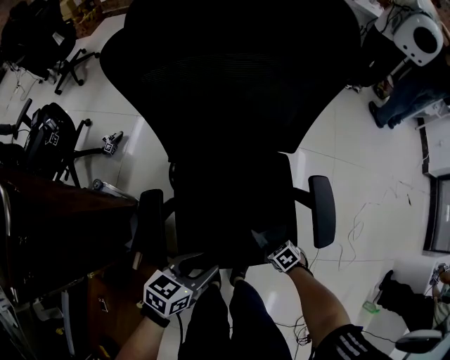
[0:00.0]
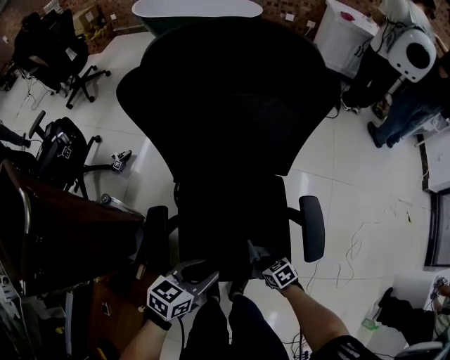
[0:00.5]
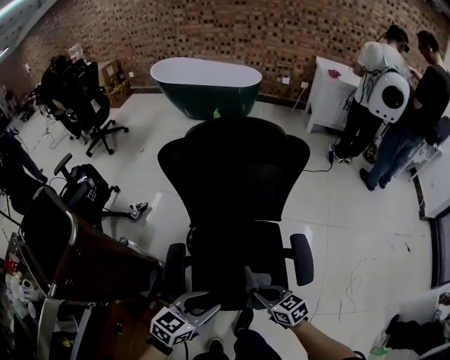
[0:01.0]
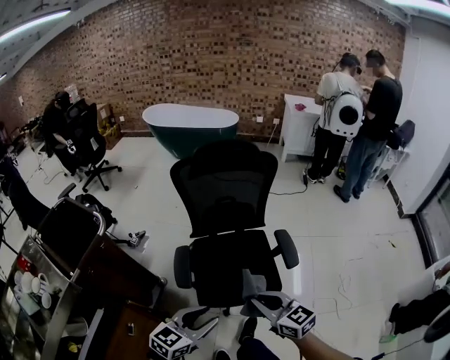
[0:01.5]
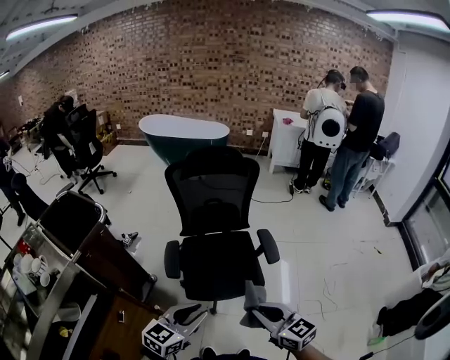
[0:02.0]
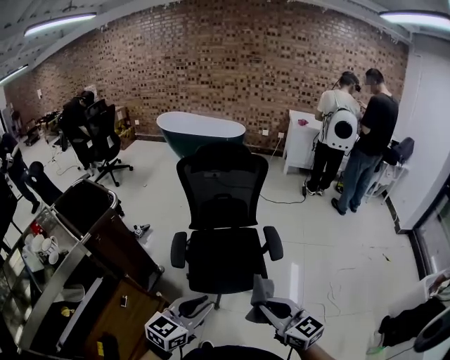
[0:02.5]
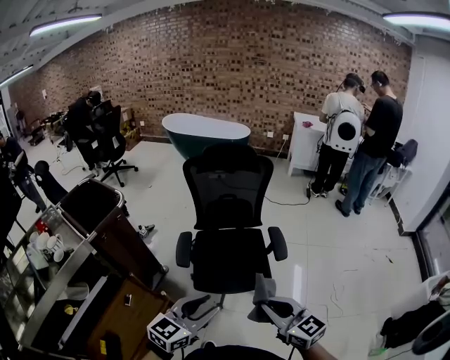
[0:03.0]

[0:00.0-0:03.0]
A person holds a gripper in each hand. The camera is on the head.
0:00.0 to 0:01.5: The left gripper heads upward, covering about 25 cm, and swivels approximately 30 degrees. The right gripper moves upward, about 50 cm, and angles its fingers upward, by roughly 60 degrees.
0:01.5 to 0:03.0: Both grippers travel together backward, upward and to the right, some 20 cm.

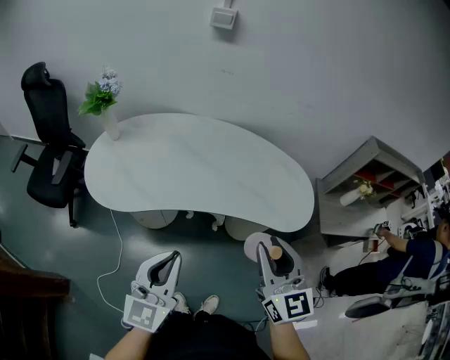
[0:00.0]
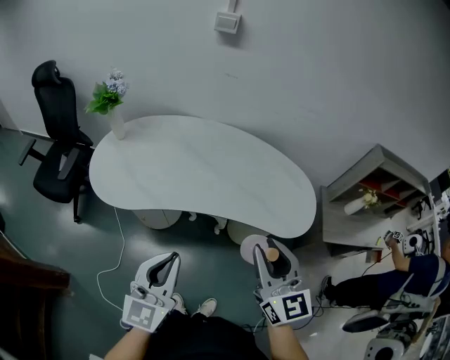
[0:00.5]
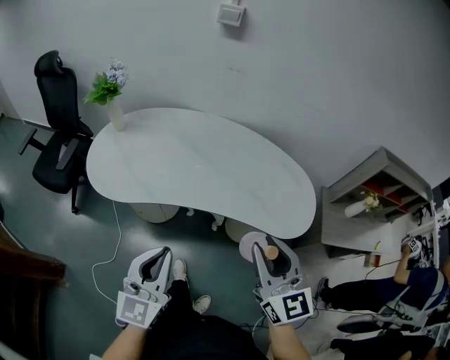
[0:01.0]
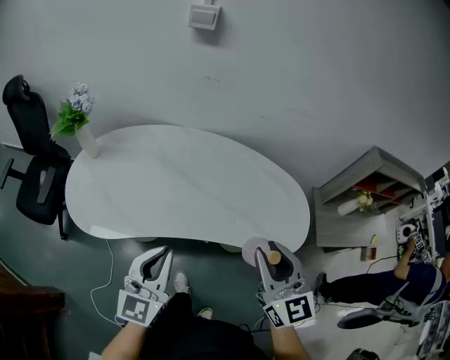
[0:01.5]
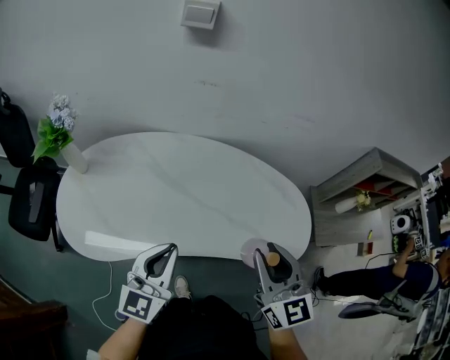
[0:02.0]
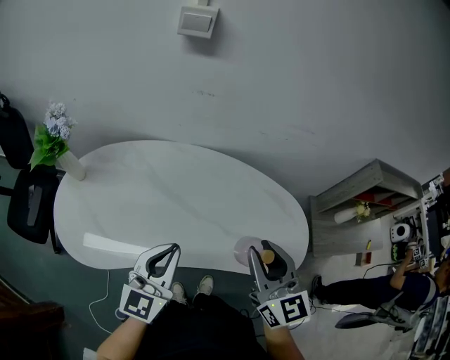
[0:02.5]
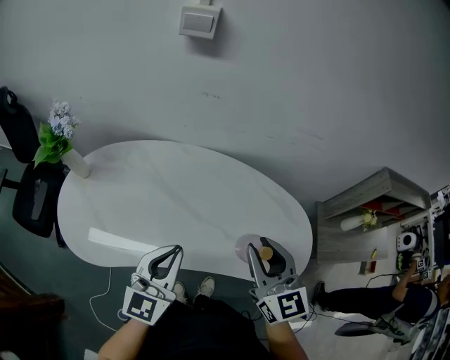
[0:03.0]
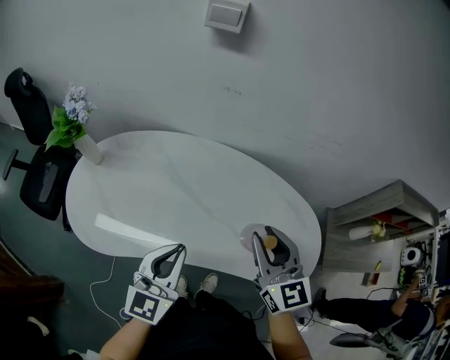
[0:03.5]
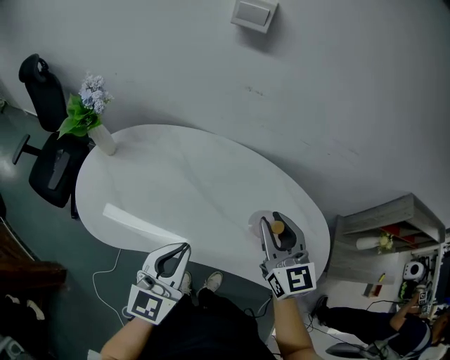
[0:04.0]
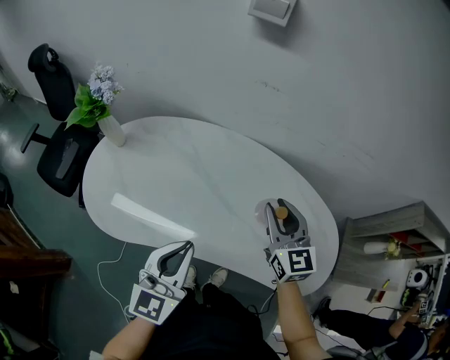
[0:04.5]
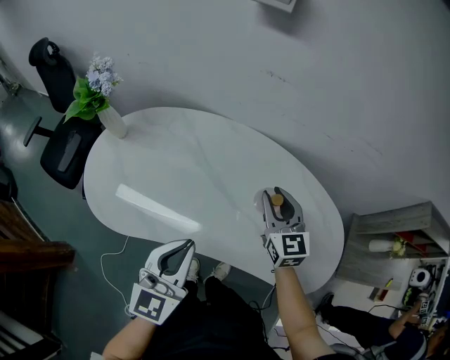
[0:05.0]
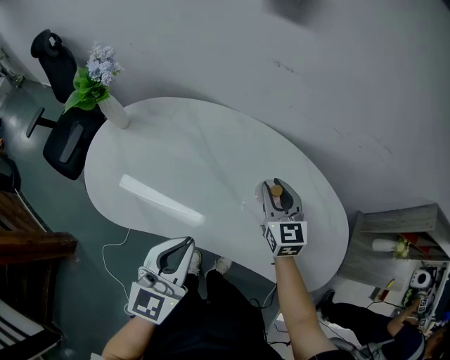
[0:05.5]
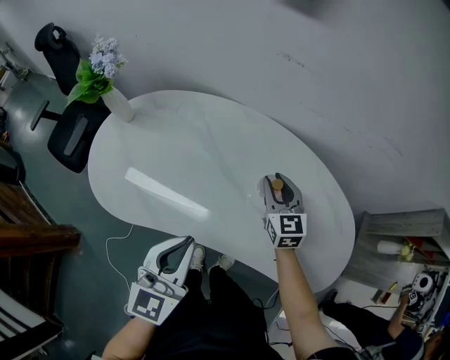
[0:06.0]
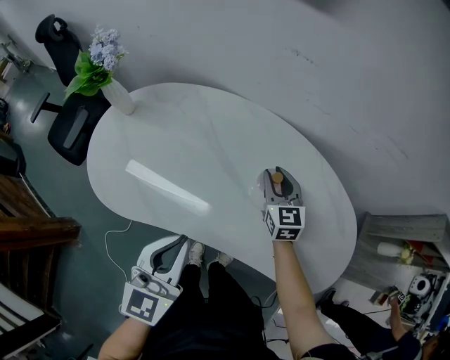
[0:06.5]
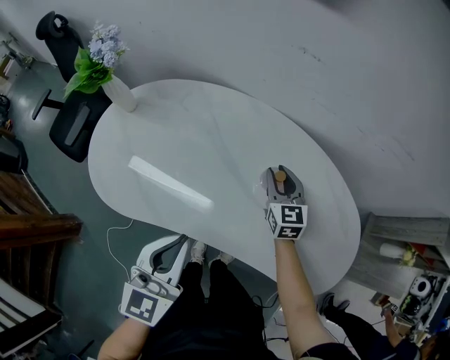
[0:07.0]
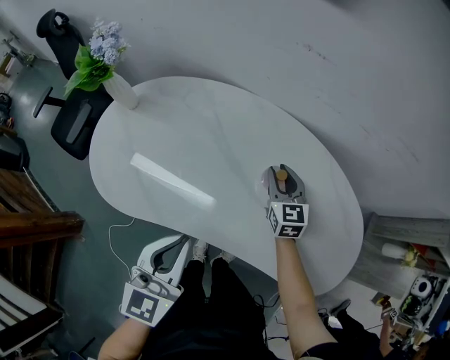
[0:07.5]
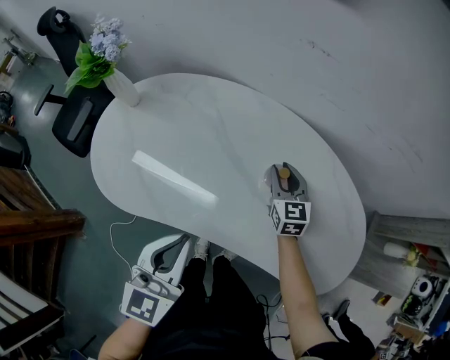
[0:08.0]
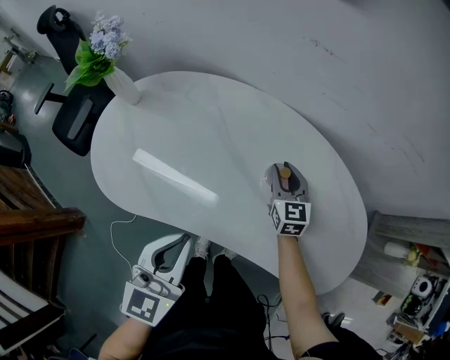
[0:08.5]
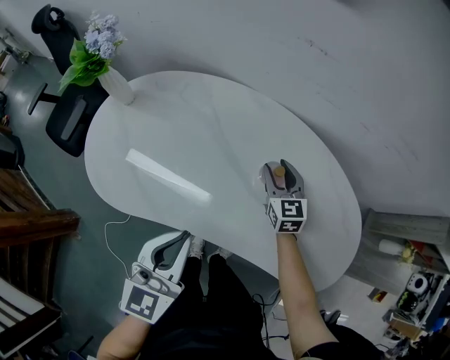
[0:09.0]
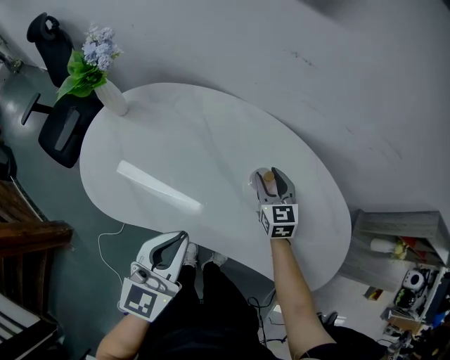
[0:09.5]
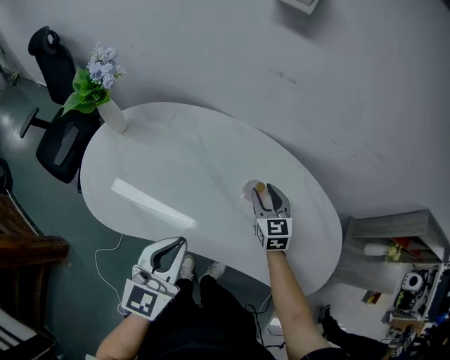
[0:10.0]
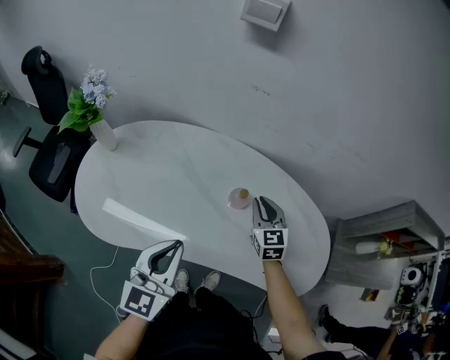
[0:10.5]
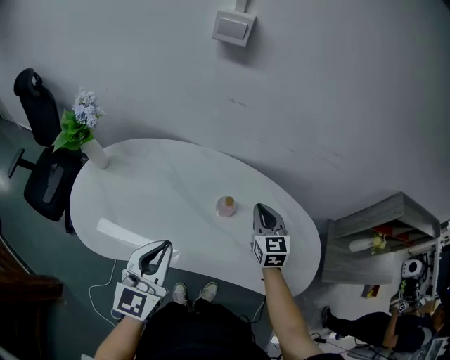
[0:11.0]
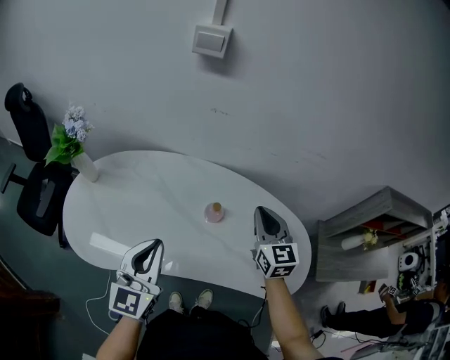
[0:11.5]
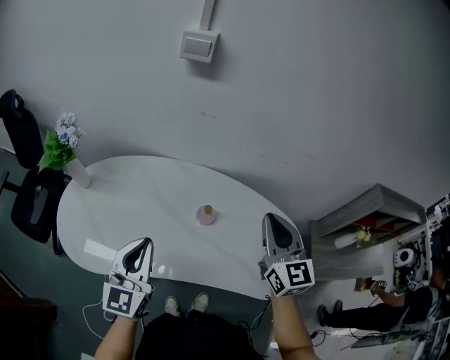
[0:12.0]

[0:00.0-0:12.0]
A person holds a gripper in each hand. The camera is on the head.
0:00.0 to 0:02.0: The two grippers go approximately 20 cm forward.
0:02.0 to 0:04.0: The right gripper is displaced forward by about 15 cm.
0:04.0 to 0:06.0: The right gripper moves downward and forward, roughly 20 cm.
0:06.0 to 0:08.0: The right gripper goes roughly 5 cm downward.
0:08.0 to 0:10.0: The grippers stay close to where they were, moving slightly.
0:10.0 to 0:12.0: The right gripper is displaced upward, to the right and backward by about 30 cm, swivels some 30 degrees, and closes, while the left gripper travels upward by some 5 cm.

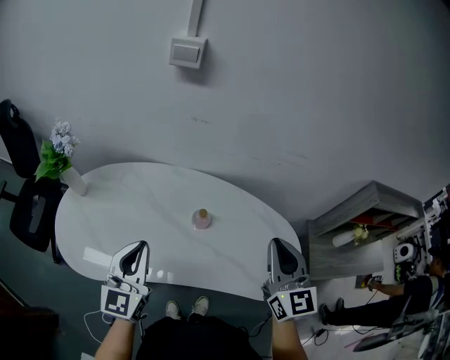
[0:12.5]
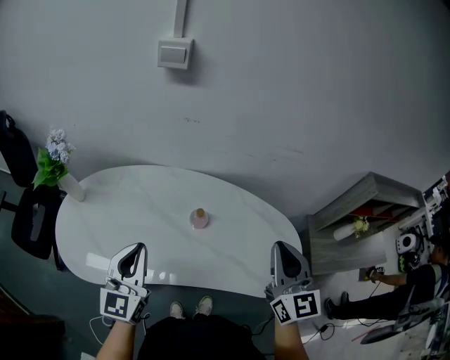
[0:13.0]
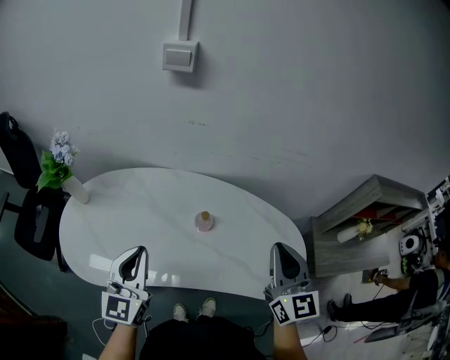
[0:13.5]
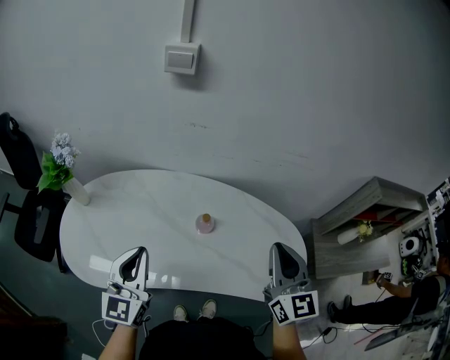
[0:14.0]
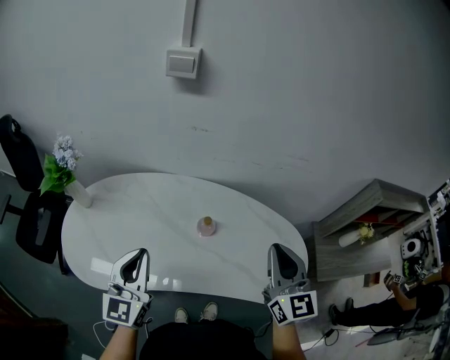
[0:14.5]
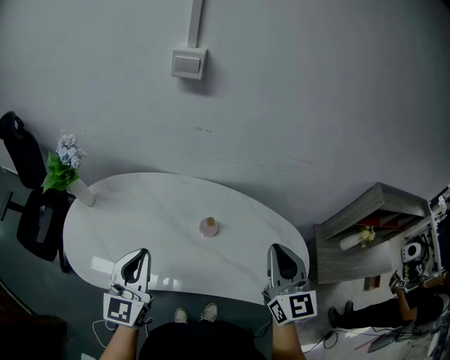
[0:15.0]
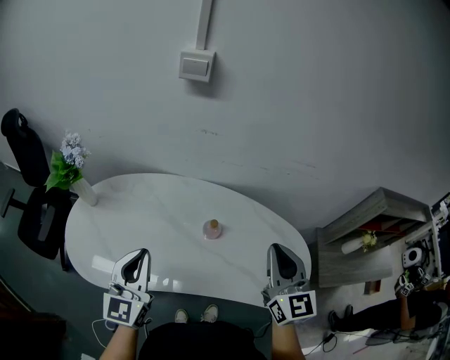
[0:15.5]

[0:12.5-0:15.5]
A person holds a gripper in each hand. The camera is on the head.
0:12.5 to 0:15.5: The grippers stay close to where they were, moving slightly.

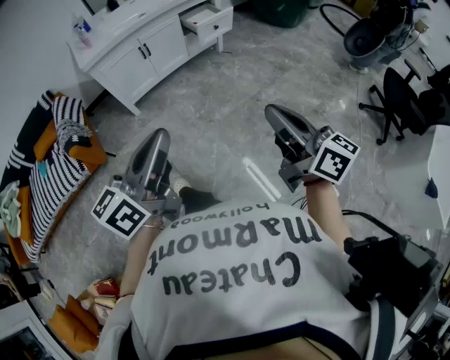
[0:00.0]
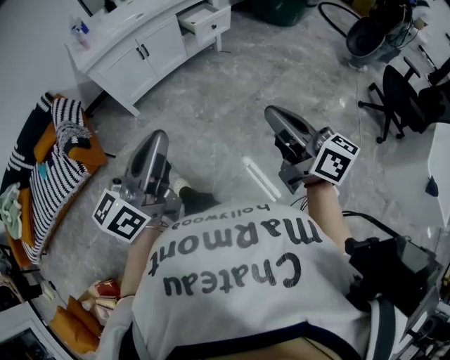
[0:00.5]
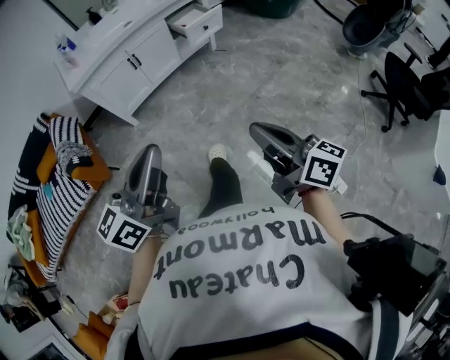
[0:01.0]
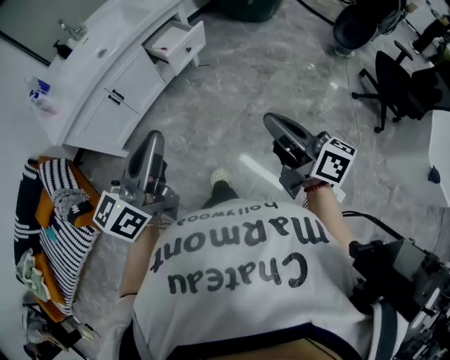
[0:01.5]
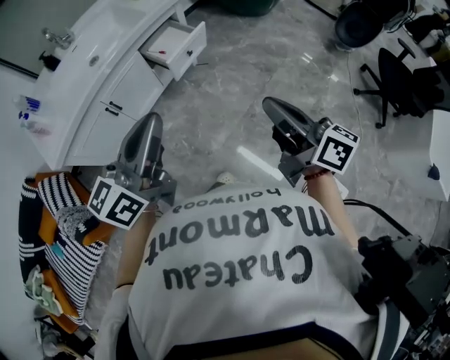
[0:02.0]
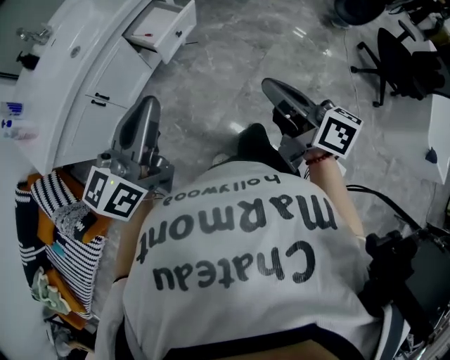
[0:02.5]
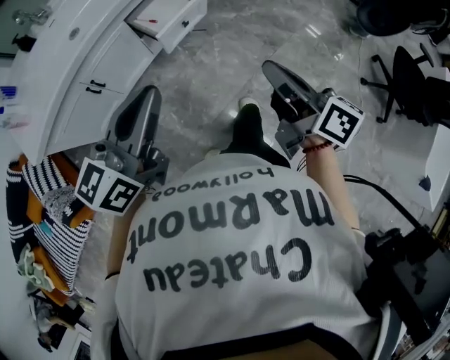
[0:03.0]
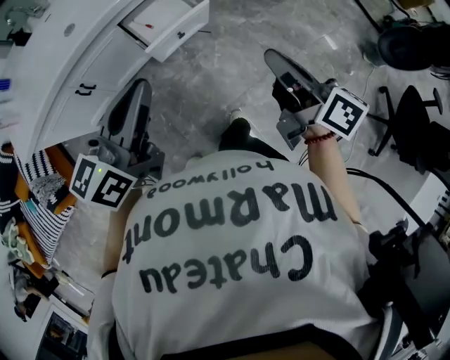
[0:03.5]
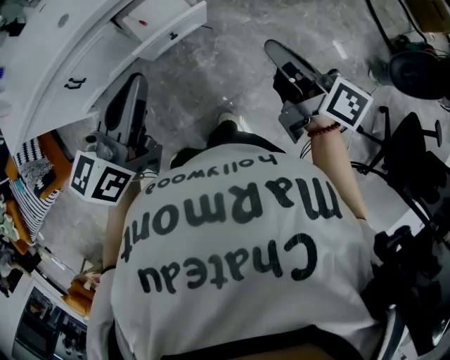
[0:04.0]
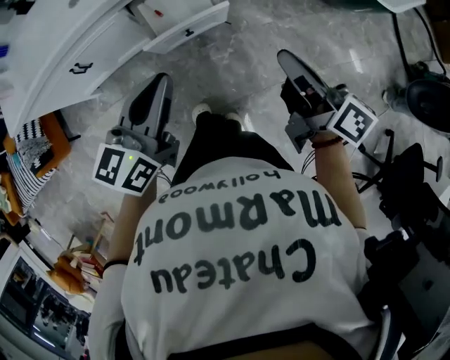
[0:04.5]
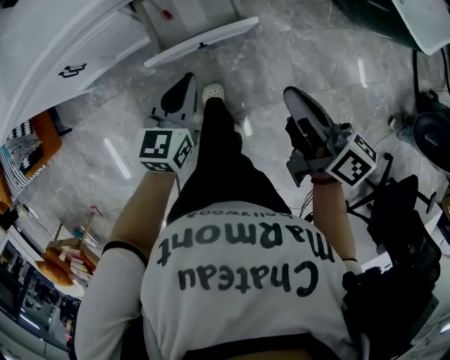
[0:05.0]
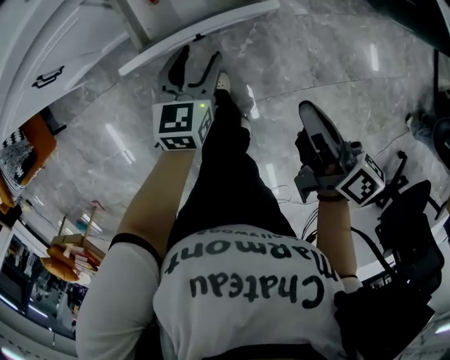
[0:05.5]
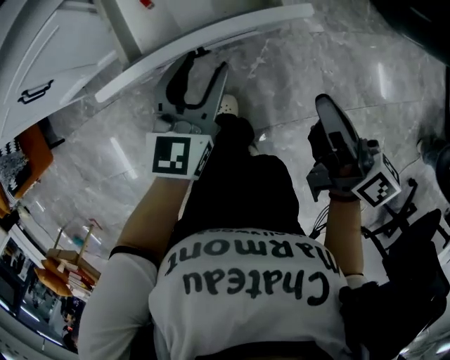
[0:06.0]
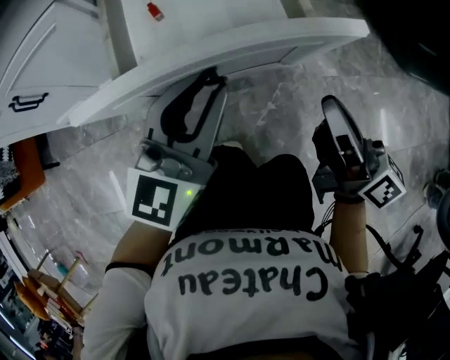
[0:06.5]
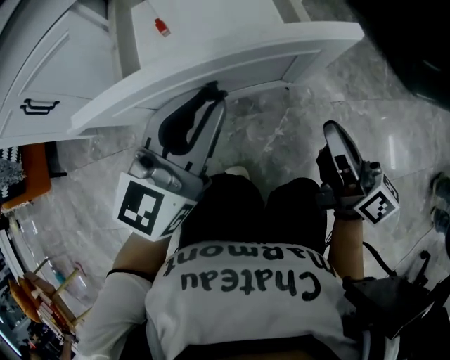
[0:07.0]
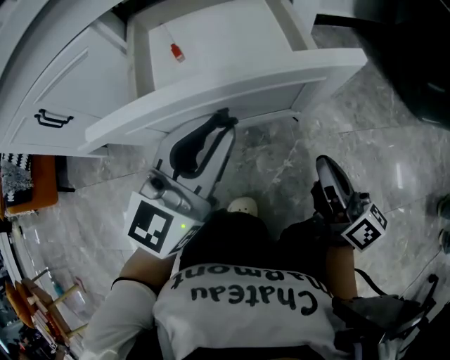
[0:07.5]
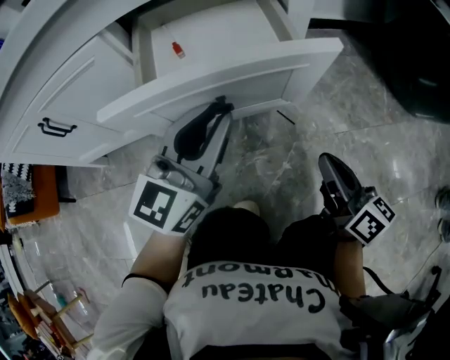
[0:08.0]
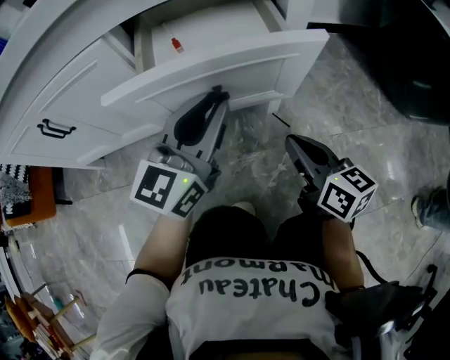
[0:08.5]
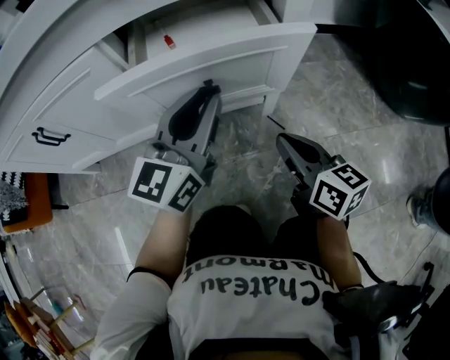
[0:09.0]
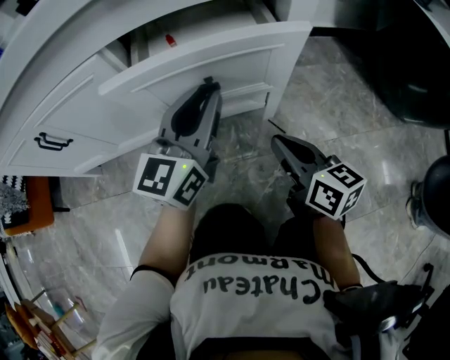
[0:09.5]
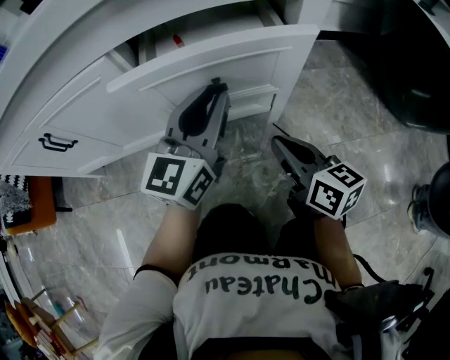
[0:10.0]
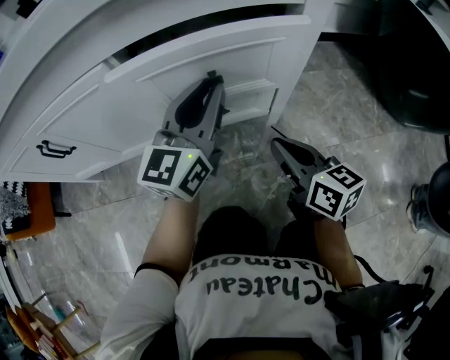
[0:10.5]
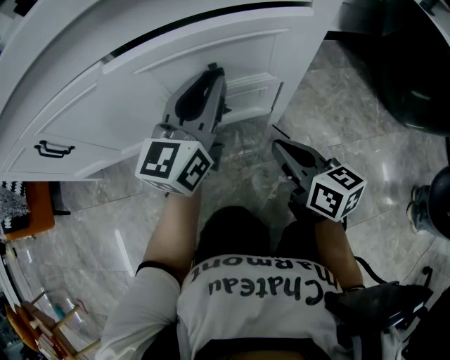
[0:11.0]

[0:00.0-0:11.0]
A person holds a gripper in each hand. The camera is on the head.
0:00.0 to 0:02.0: Both grippers move forward, about 40 cm.
0:02.0 to 0:03.5: Both grippers travel together forward, roughly 25 cm.
0:03.5 to 0:05.5: The grippers both shift downward and forward by some 40 cm. The right gripper rotates roughly 20 degrees. The left gripper rotates roughly 40 degrees, and opens up.
0:05.5 to 0:07.5: The left gripper angles its fingers upward, by about 30 degrees, and closes; the right gripper shifts some 25 cm downward and forward, and changes its angle by approximately 30 degrees.
0:07.5 to 0:09.0: The right gripper travels to the left and forward by some 10 cm, and swivels some 30 degrees, while the left gripper moves forward, approximately 10 cm.
0:09.0 to 0:11.0: The left gripper moves forward, some 5 cm.
